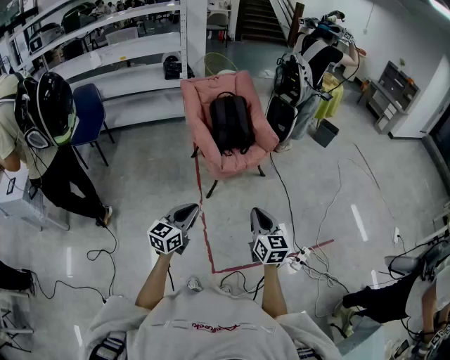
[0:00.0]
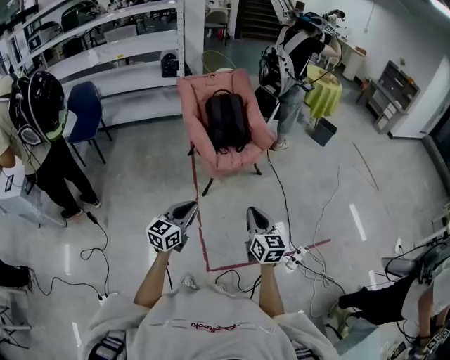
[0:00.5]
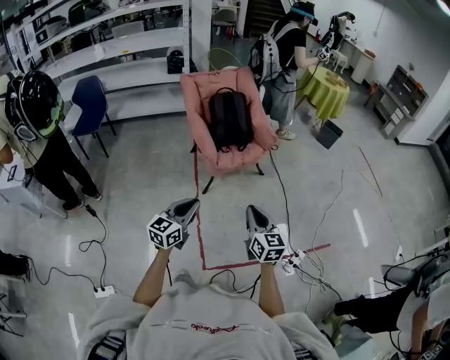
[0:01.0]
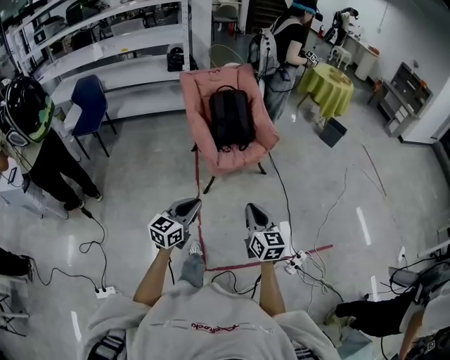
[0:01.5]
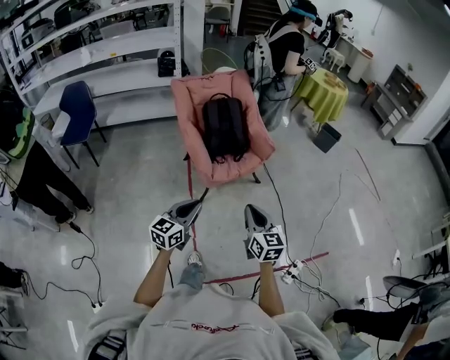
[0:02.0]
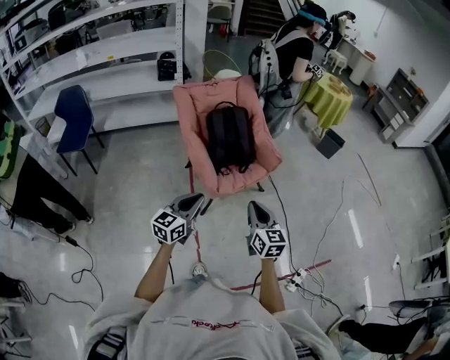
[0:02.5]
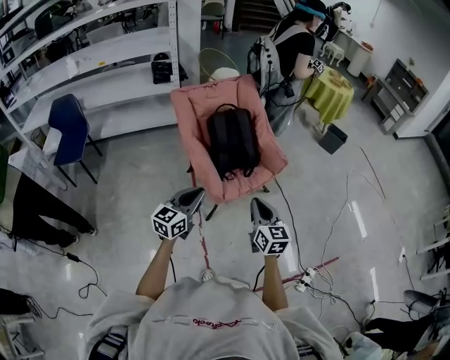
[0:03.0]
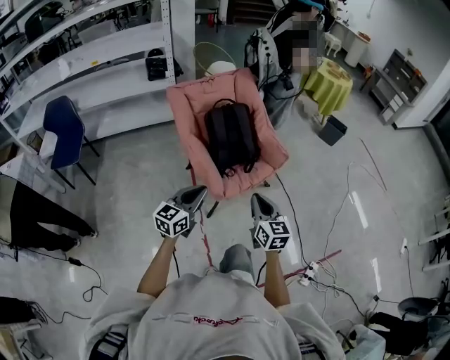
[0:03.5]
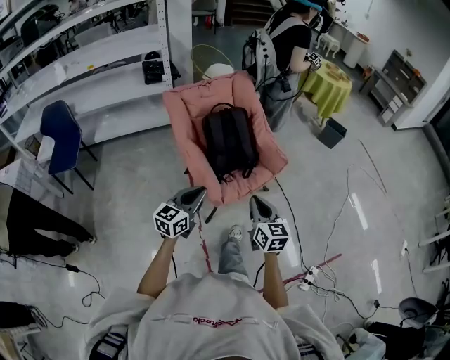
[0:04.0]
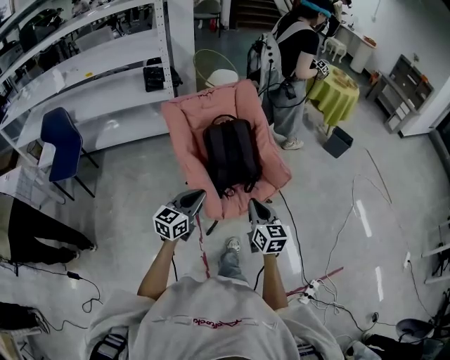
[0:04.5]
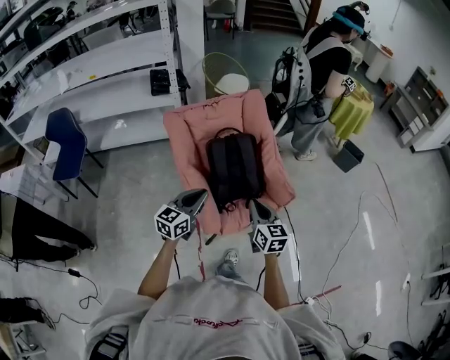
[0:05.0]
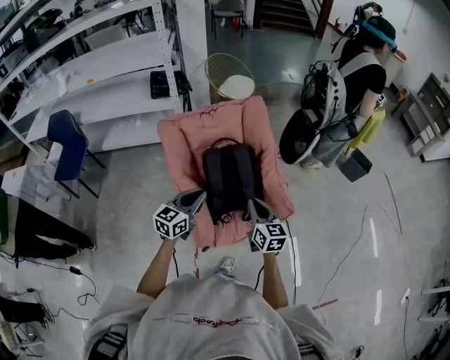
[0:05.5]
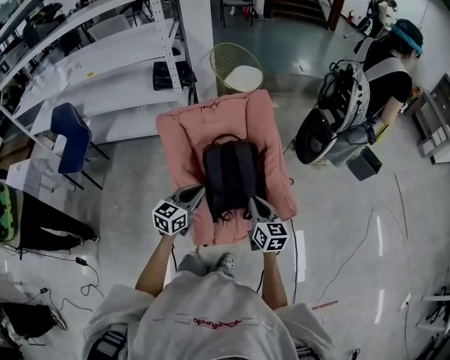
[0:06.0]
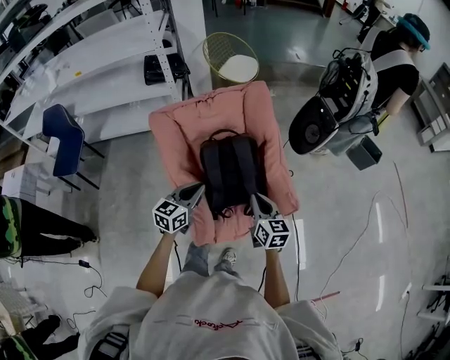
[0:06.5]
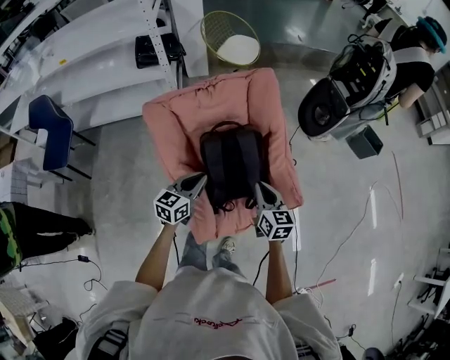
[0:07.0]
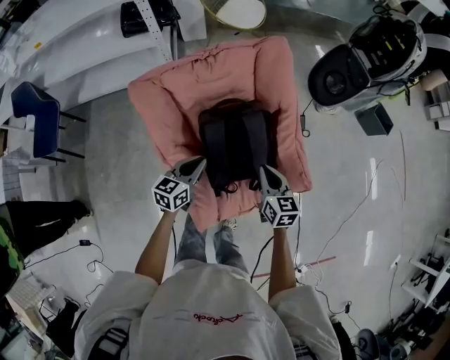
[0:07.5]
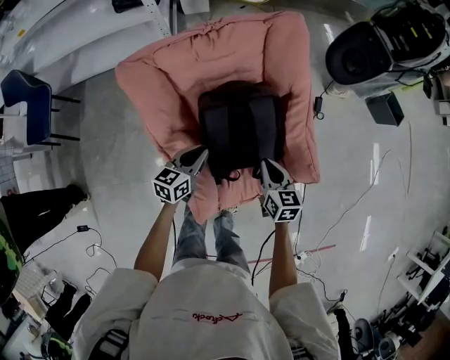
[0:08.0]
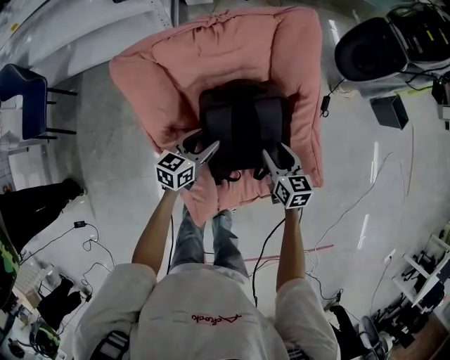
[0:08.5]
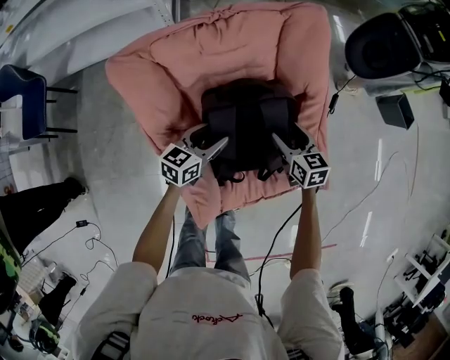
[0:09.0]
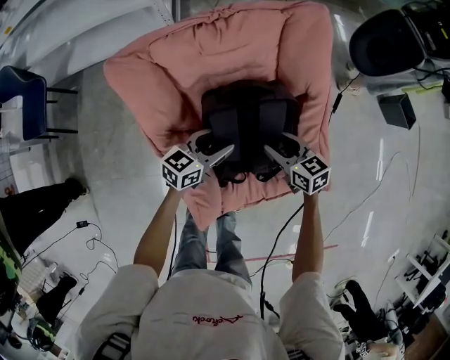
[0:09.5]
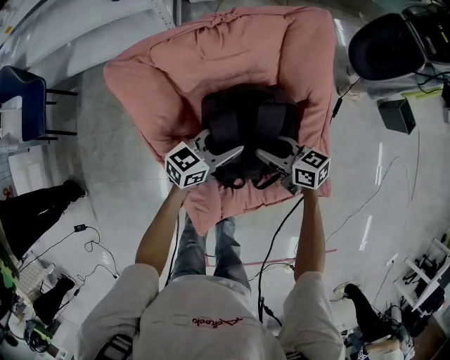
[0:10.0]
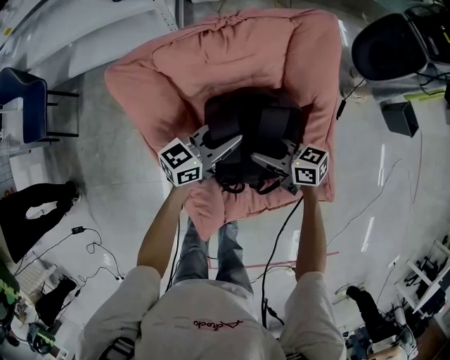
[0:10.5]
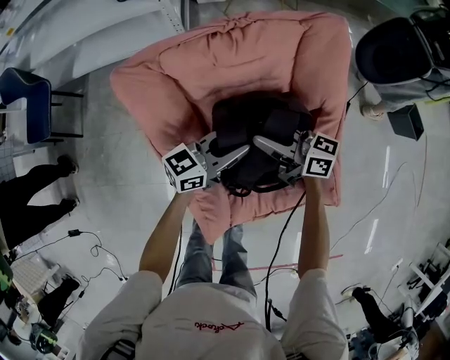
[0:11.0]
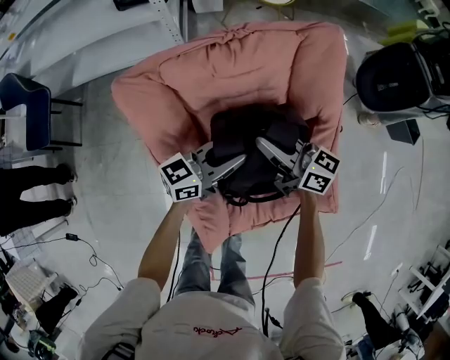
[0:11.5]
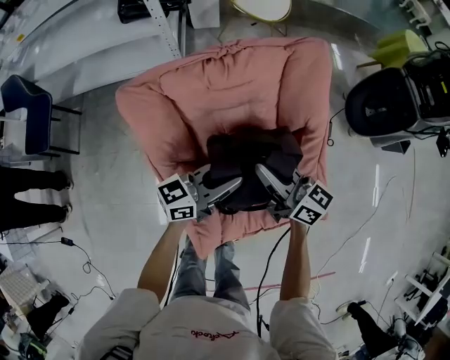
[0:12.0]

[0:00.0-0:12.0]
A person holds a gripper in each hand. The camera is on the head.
0:00.0 to 0:02.0: The two grippers go about 15 cm forward.
0:02.0 to 0:04.0: Both grippers travel together forward and to the left, some 25 cm.
0:04.0 to 0:06.0: Both grippers travel together forward, some 35 cm.
0:06.0 to 0:08.0: Both grippers move downward and forward, about 25 cm. The left gripper turns by some 20 degrees.
0:08.0 to 0:10.0: The left gripper shifts roughly 10 cm forward and to the right, changes its angle by roughly 20 degrees, and opens; the right gripper is displaced forward and to the left by some 10 cm, turns by about 40 degrees, and opens.
0:10.0 to 0:12.0: The right gripper heads upward, covering approximately 15 cm, rotates approximately 30 degrees, and closes its fingers. Meanwhile the left gripper moves upward, roughly 10 cm, and closes its fingers.

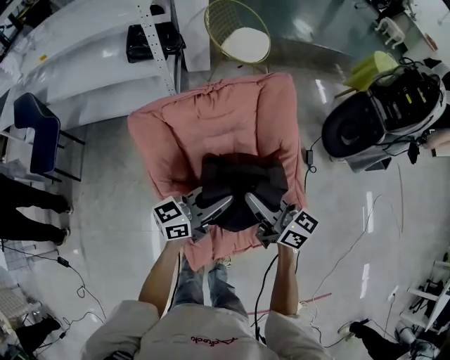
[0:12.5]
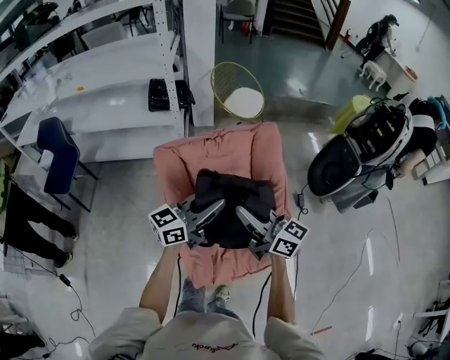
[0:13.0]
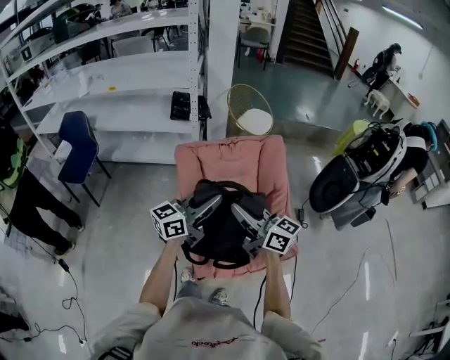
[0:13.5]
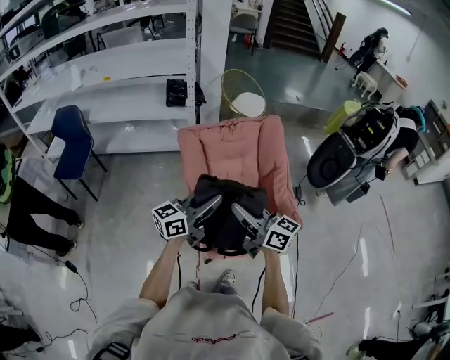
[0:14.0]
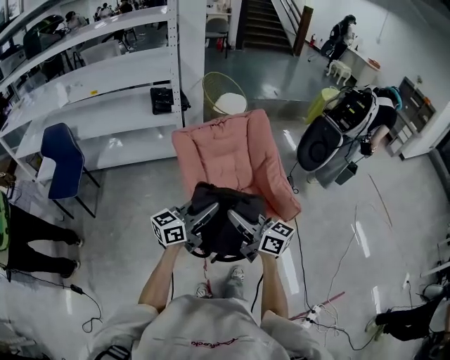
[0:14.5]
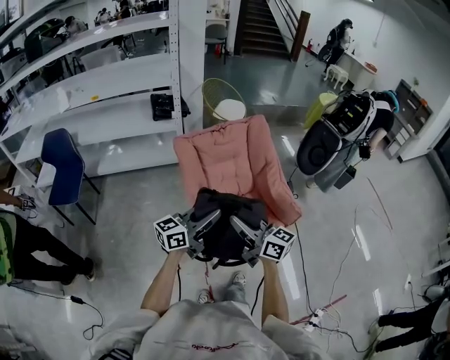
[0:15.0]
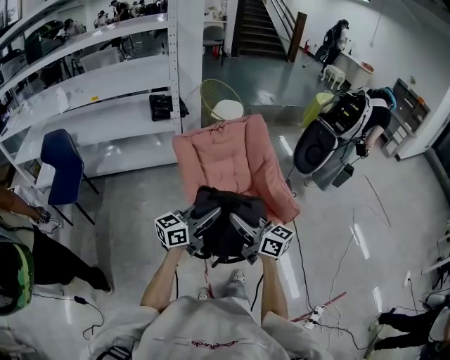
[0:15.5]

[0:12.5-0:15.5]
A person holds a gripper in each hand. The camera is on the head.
0:12.5 to 0:14.0: Both grippers move backward, upward and to the left, some 35 cm.
0:14.0 to 0:15.5: The two grippers go approximately 10 cm backward and to the left.

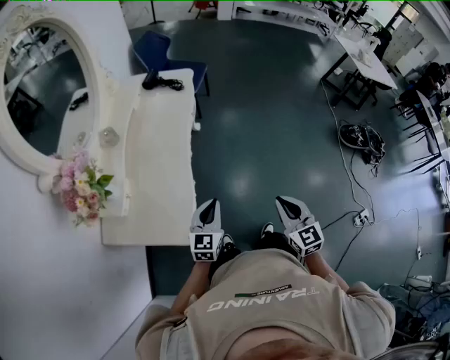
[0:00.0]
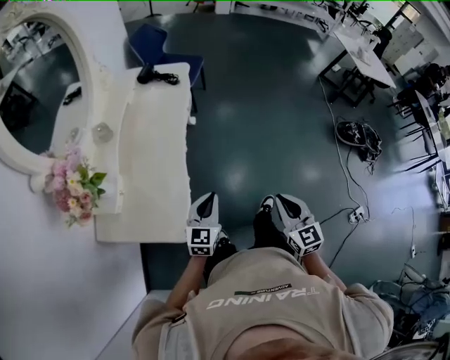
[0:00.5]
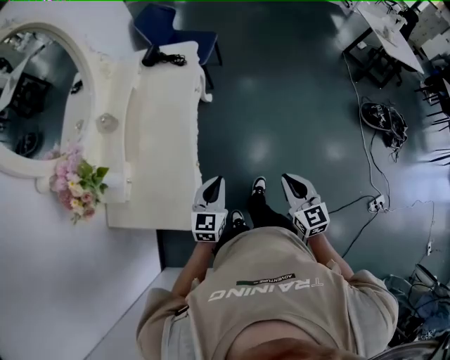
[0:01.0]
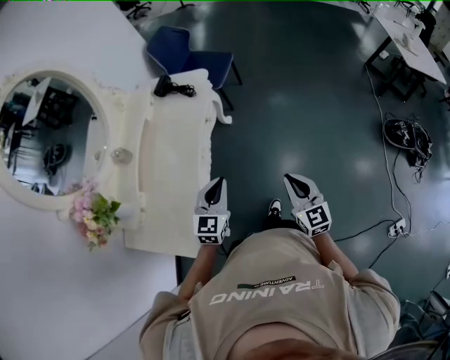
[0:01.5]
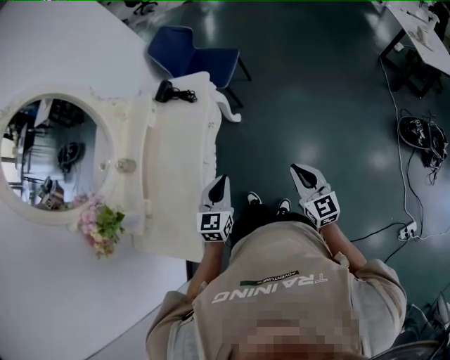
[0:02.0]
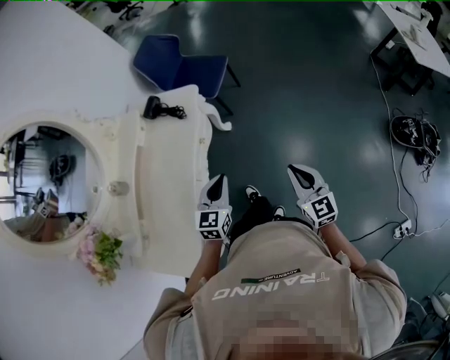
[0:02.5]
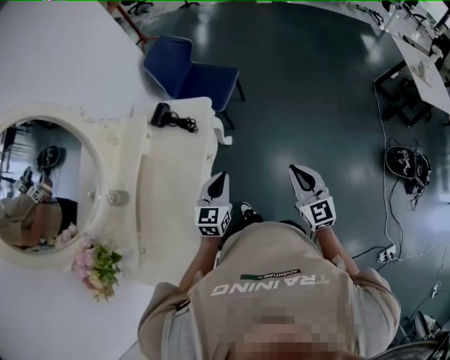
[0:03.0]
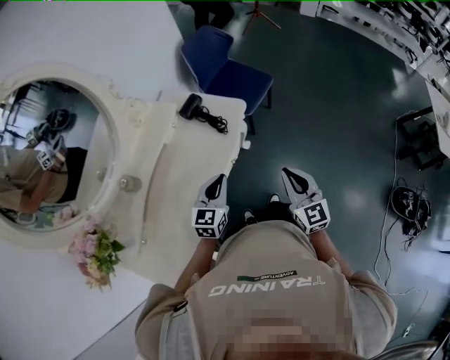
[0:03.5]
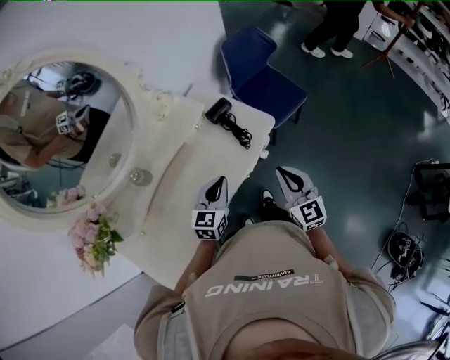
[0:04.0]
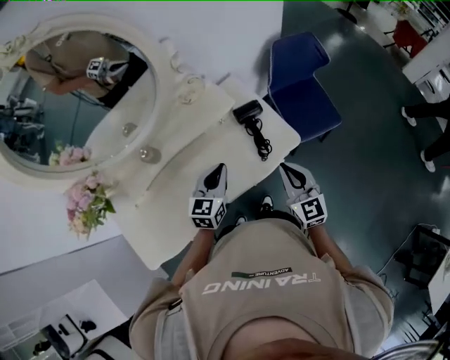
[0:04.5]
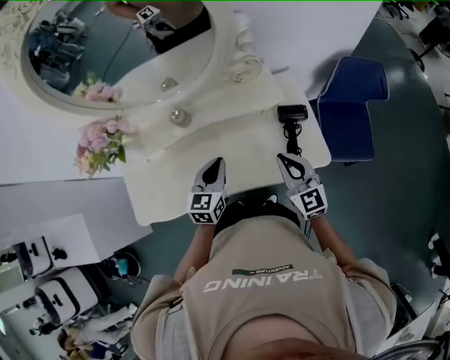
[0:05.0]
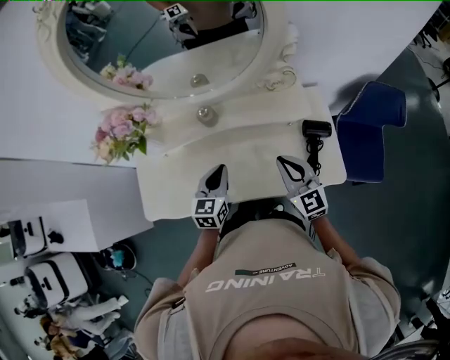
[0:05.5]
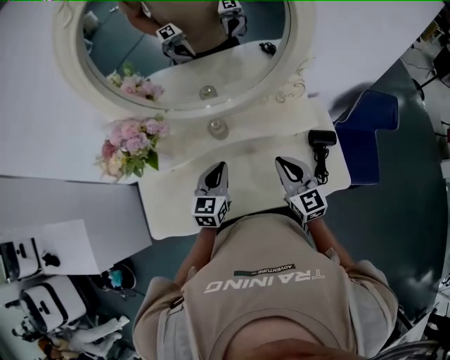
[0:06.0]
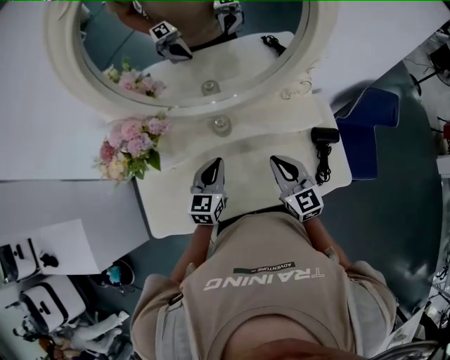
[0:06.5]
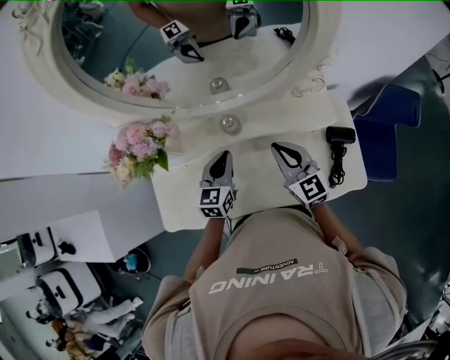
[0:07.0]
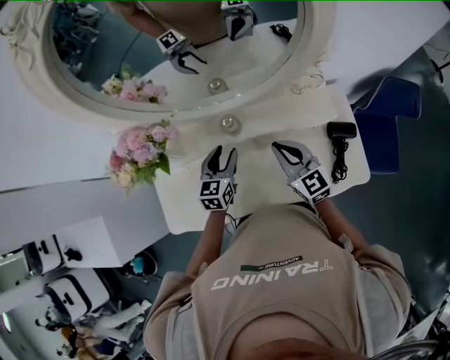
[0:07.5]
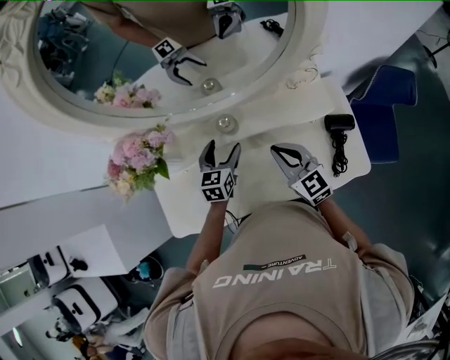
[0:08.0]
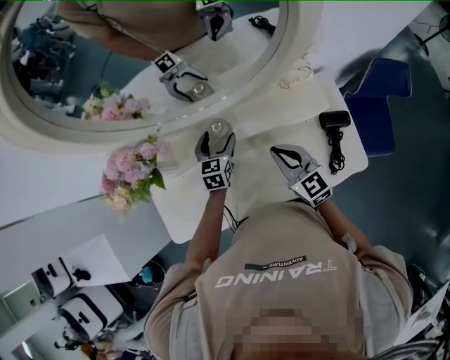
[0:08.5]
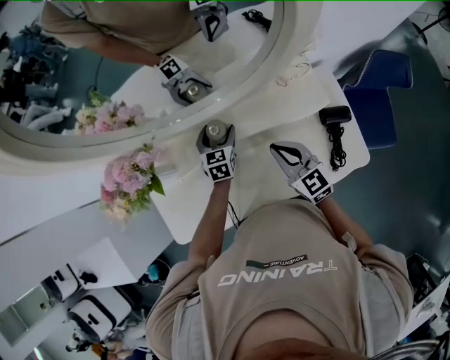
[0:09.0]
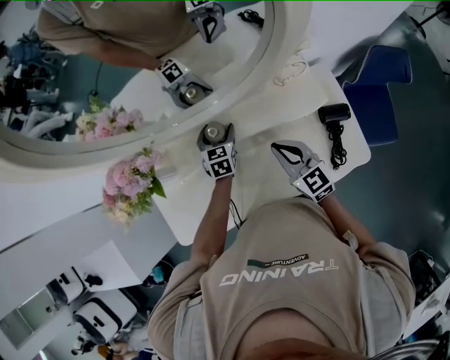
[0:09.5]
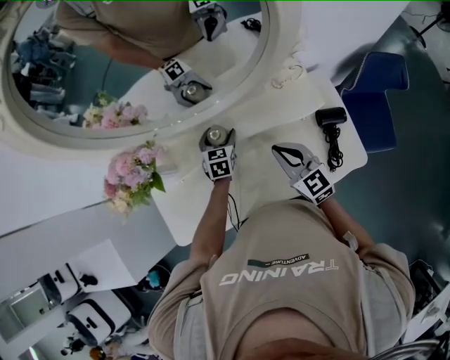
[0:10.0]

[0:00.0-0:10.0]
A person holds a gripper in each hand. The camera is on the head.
0:00.0 to 0:02.0: Both grippers travel together forward and to the right, roughly 25 cm.
0:02.0 to 0:04.0: The left gripper moves some 30 cm, and turns by some 30 degrees. The right gripper moves about 40 cm, and turns by approximately 30 degrees.
0:04.0 to 0:06.0: The left gripper shifts by about 25 cm, and turns by some 50 degrees, while the right gripper changes place by about 30 cm, and changes its angle by about 50 degrees.
0:06.0 to 0:08.0: The left gripper heads forward and downward, covering approximately 10 cm, and opens up. Meanwhile the right gripper moves about 5 cm.
0:08.0 to 0:10.0: The left gripper is displaced forward and downward by roughly 10 cm.

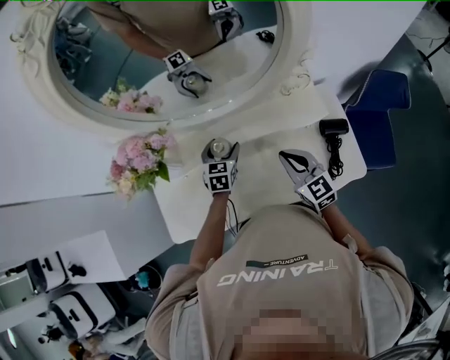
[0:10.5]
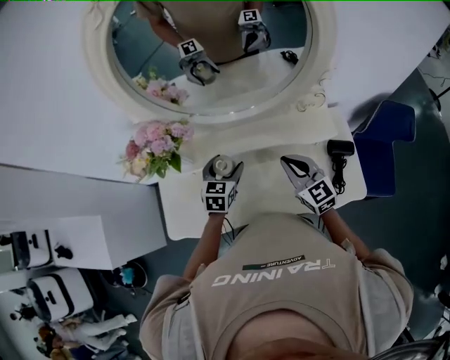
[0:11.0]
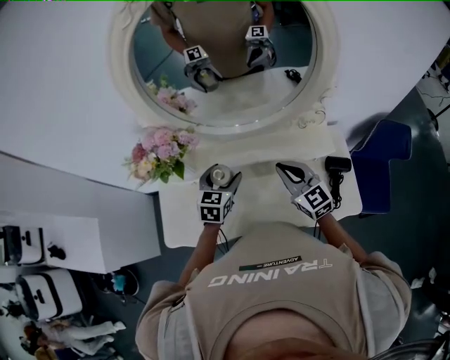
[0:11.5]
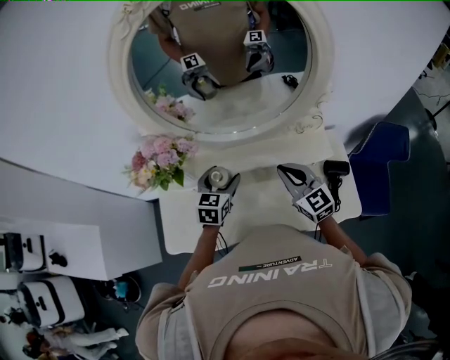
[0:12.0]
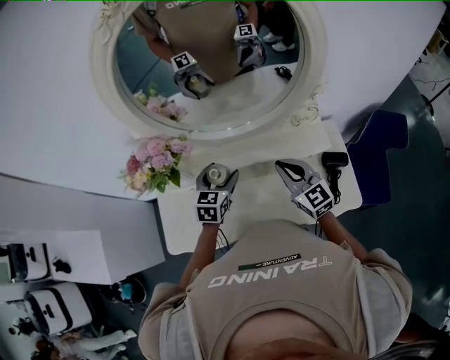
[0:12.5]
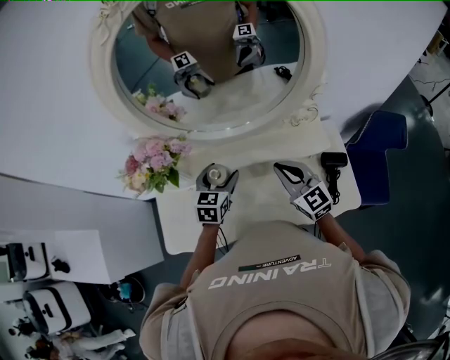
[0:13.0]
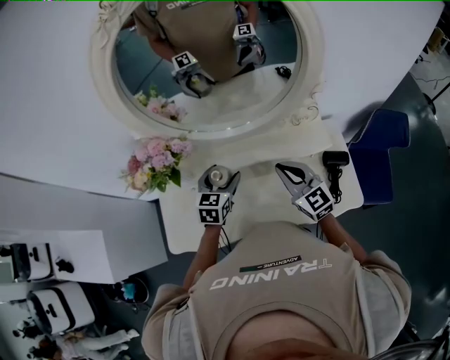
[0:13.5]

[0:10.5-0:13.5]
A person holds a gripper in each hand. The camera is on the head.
0:10.5 to 0:12.0: The right gripper heads upward, covering some 5 cm; the left gripper travels upward by about 10 cm.
0:12.0 to 0:13.5: There are only small adjustments of the grippers.
